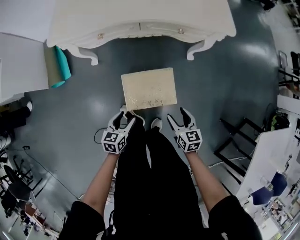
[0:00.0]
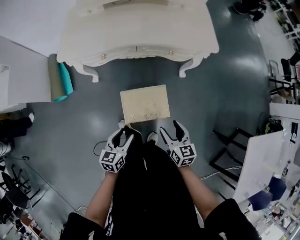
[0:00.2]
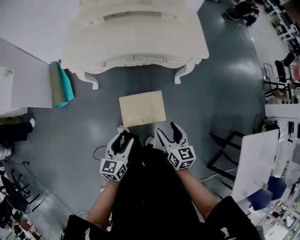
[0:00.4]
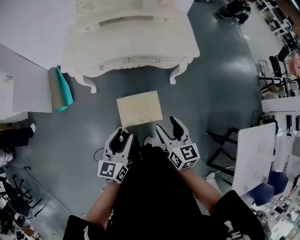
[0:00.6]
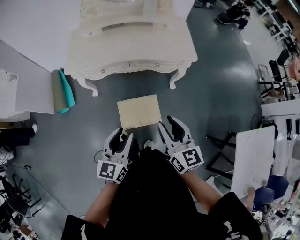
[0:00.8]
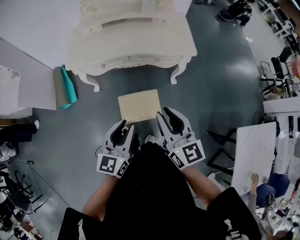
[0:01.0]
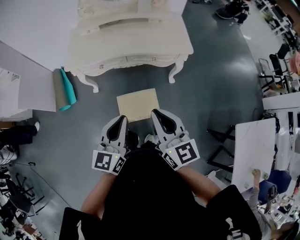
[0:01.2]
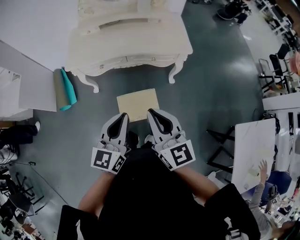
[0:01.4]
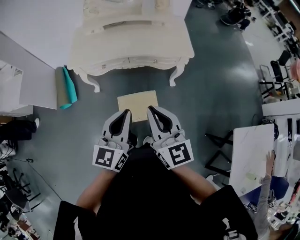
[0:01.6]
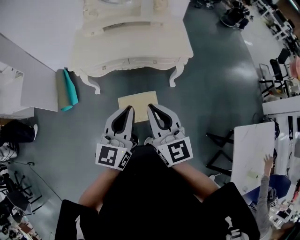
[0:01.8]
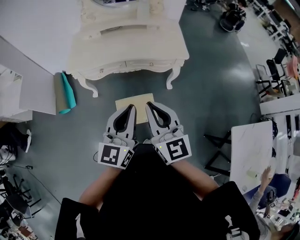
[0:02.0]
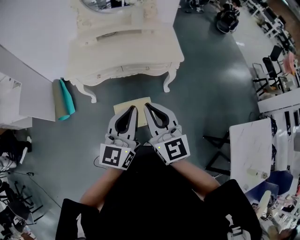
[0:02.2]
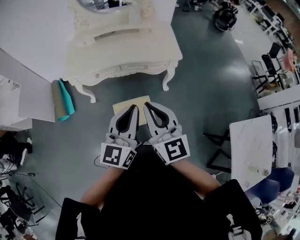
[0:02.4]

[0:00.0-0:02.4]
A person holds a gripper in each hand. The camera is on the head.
0:00.0 to 0:01.2: The two grippers go about 40 cm upward. The left gripper points its fingers some 30 degrees further upward, and closes, while the right gripper tips its fingers upward by about 30 degrees, and closes.
0:01.2 to 0:02.4: The left gripper is displaced to the right and upward by roughly 10 cm. Meanwhile the right gripper goes roughly 5 cm upward.

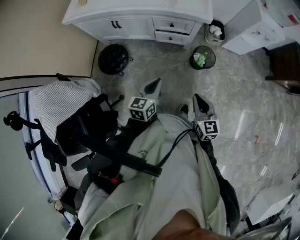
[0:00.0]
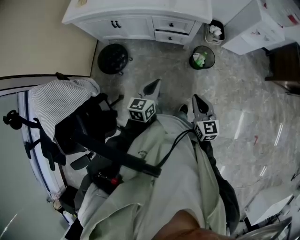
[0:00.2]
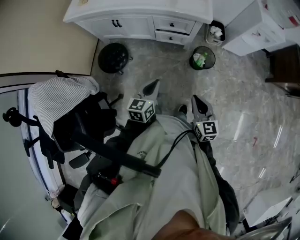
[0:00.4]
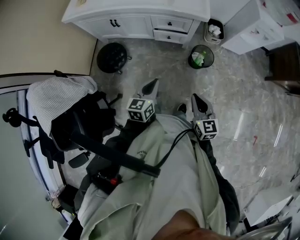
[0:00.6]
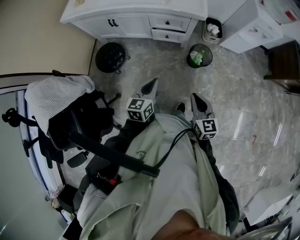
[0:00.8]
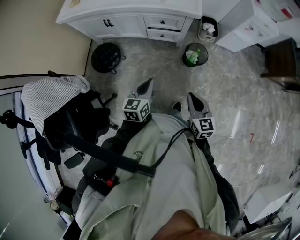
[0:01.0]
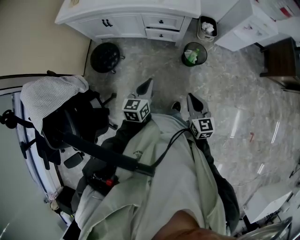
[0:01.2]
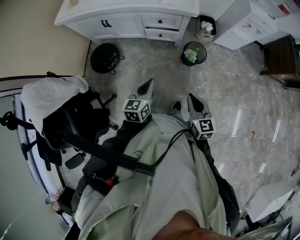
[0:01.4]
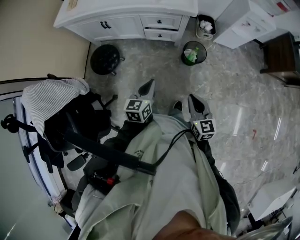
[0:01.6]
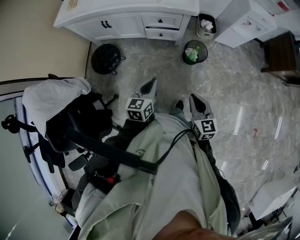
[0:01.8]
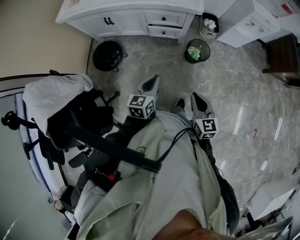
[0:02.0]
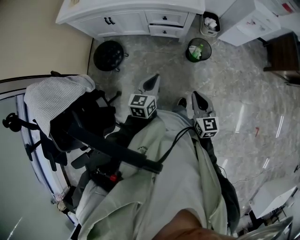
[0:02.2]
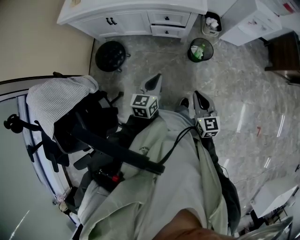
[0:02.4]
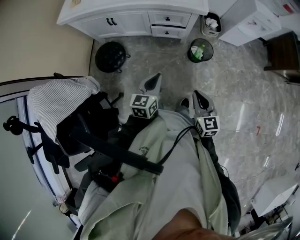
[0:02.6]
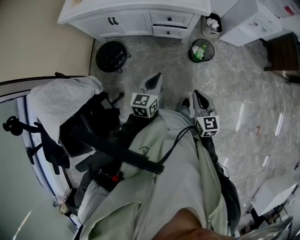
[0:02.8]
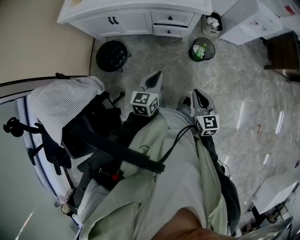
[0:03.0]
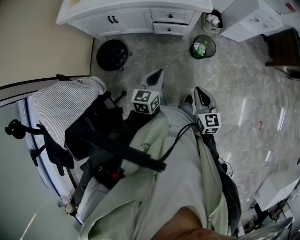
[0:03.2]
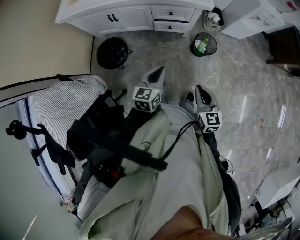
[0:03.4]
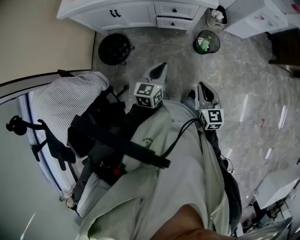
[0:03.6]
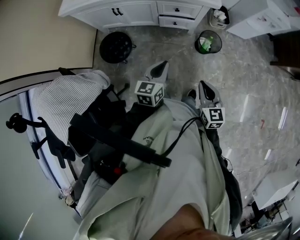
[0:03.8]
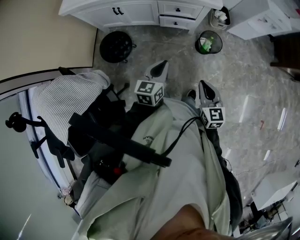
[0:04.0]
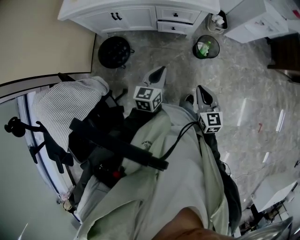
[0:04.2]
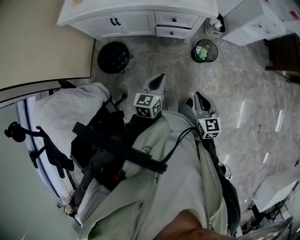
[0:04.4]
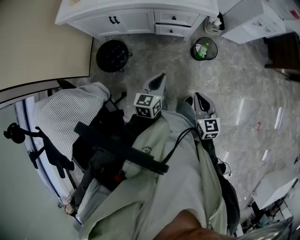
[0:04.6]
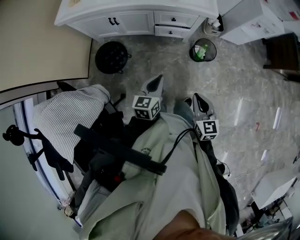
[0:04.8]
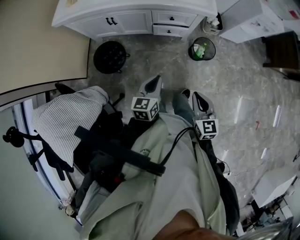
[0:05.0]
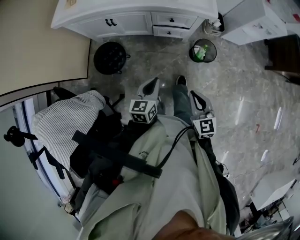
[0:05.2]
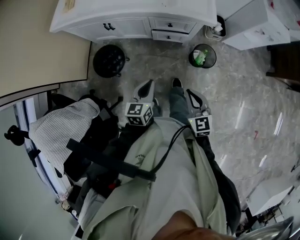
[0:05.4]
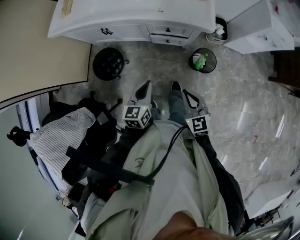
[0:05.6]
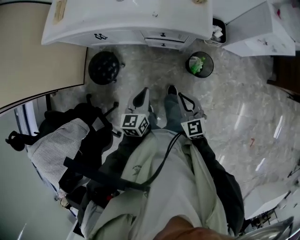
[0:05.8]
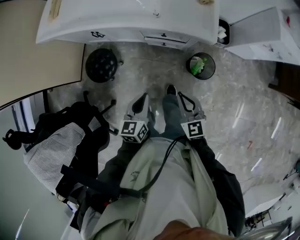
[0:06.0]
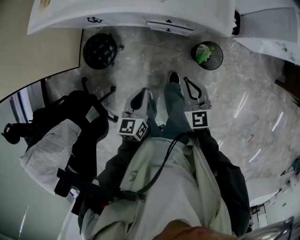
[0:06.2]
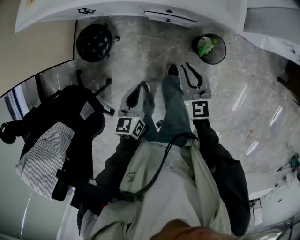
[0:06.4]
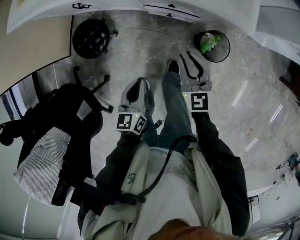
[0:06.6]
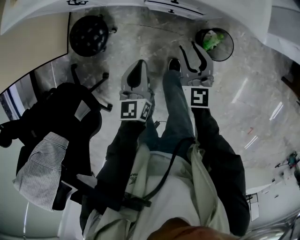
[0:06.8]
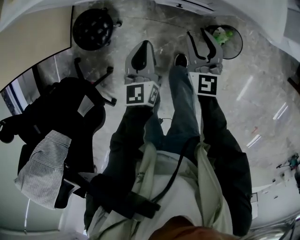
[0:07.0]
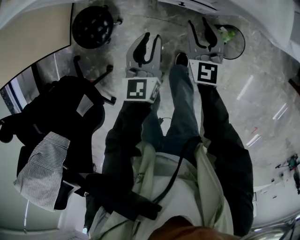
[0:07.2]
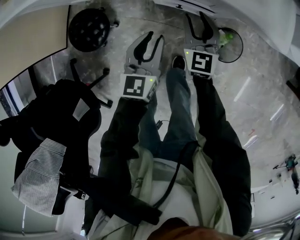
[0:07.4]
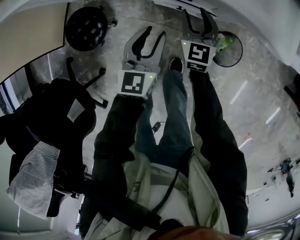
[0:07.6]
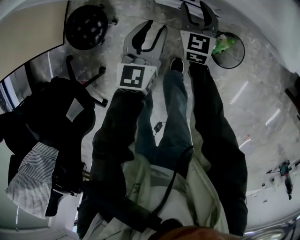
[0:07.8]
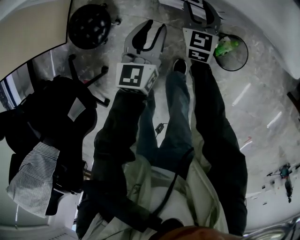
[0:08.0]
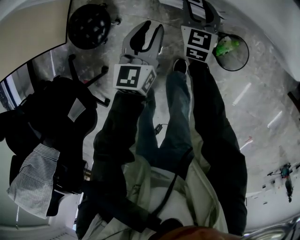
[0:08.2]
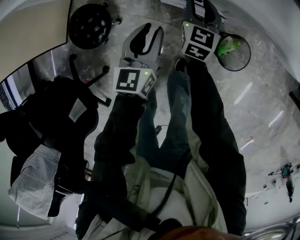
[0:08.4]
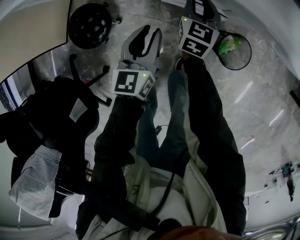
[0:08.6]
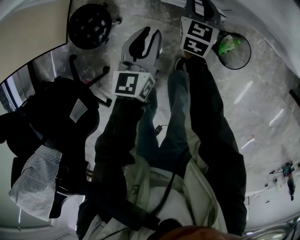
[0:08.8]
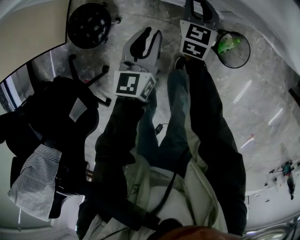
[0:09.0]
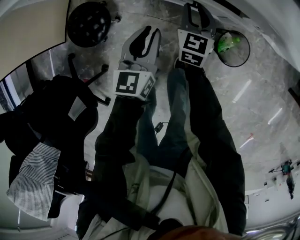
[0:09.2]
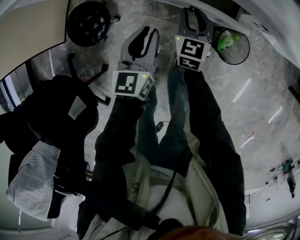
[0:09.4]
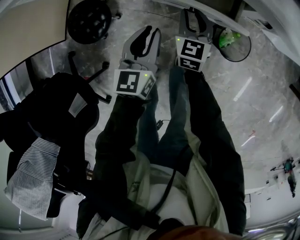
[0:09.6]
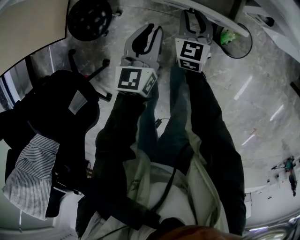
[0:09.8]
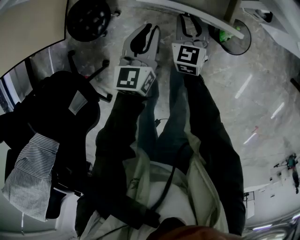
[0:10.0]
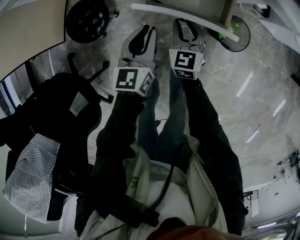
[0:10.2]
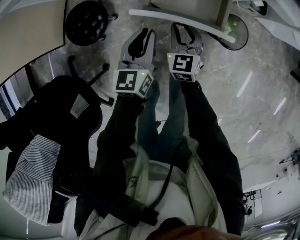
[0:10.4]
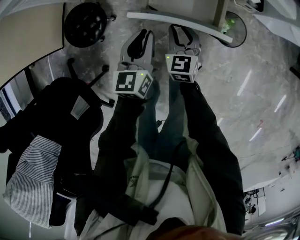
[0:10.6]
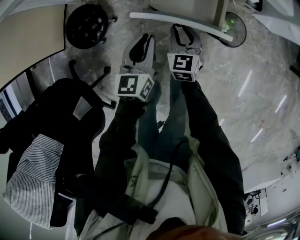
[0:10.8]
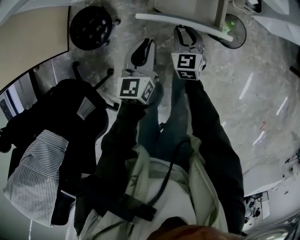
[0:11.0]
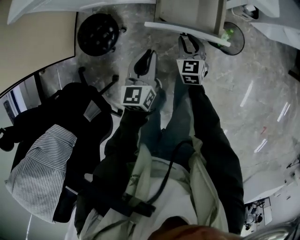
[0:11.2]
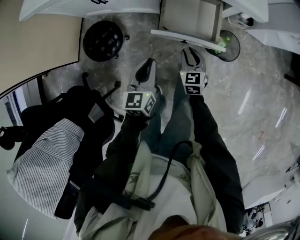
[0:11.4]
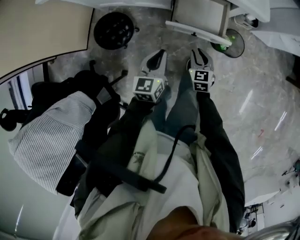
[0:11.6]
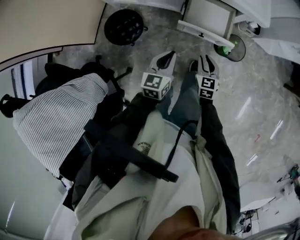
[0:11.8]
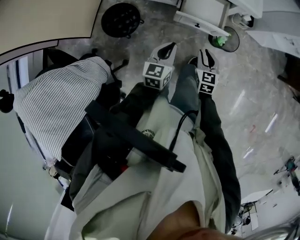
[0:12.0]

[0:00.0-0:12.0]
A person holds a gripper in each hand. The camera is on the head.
0:00.0 to 0:01.6: The right gripper moves about 5 cm.
0:01.6 to 0:03.0: Both grippers travel together to the left, about 5 cm.
0:03.0 to 0:04.4: The grippers move only a little.
0:04.4 to 0:06.0: The left gripper goes some 10 cm forward. Meanwhile the right gripper travels forward by approximately 20 cm.
0:06.0 to 0:07.6: The grippers both shift forward and downward by some 30 cm. The left gripper opens up. The right gripper opens.
0:07.6 to 0:09.0: The grippers move only a little.
0:09.0 to 0:10.4: The left gripper shifts about 10 cm backward; the right gripper shifts about 20 cm backward.
0:10.4 to 0:12.0: The grippers both shift upward and backward by about 20 cm.

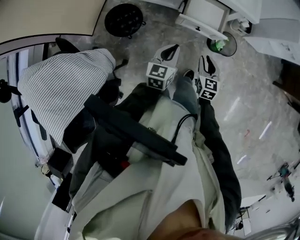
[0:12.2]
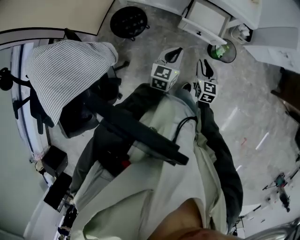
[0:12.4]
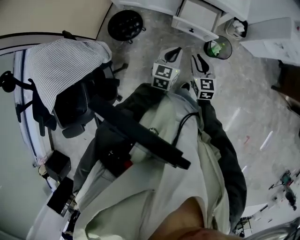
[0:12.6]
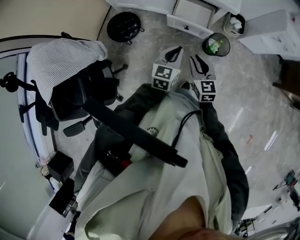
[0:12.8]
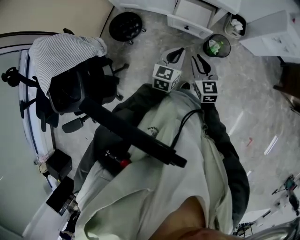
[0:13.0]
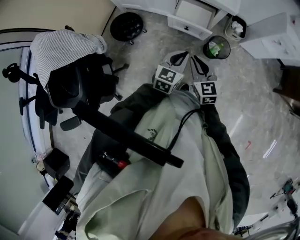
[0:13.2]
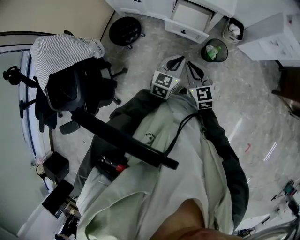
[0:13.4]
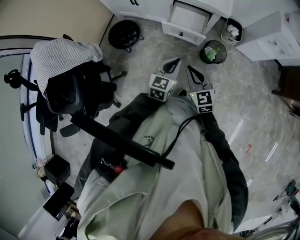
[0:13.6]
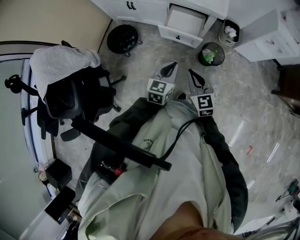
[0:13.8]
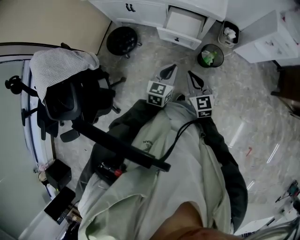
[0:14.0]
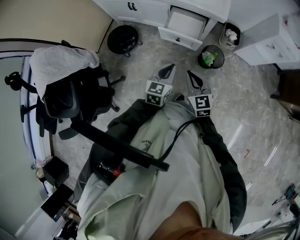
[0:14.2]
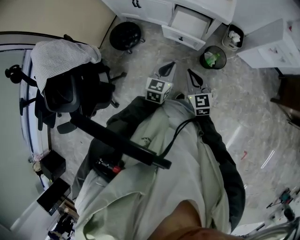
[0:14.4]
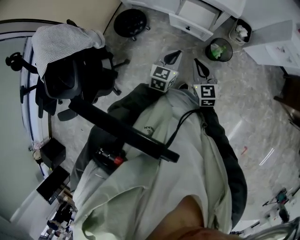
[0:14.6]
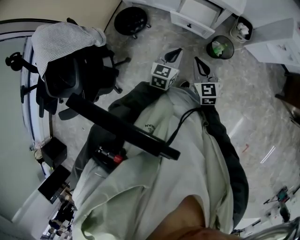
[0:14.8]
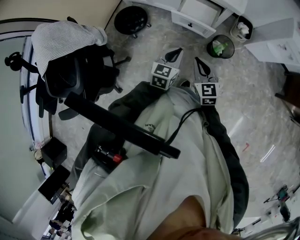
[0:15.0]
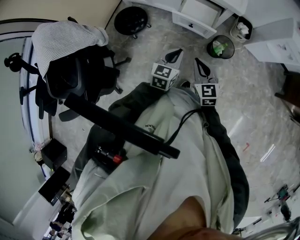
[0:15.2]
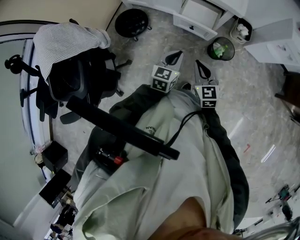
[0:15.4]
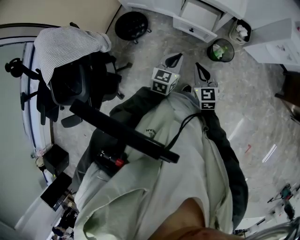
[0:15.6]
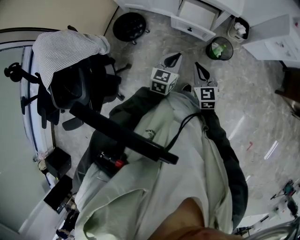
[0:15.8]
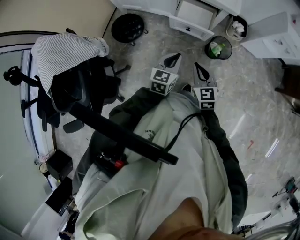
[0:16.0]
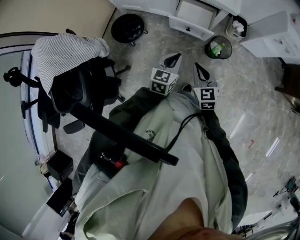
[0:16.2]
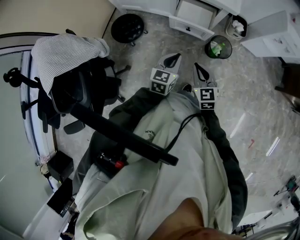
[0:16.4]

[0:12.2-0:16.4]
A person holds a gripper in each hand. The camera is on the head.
0:12.2 to 0:13.6: The right gripper is displaced upward and backward by about 15 cm, rotates roughly 30 degrees, and closes, while the left gripper travels to the right, backward and upward by approximately 15 cm.
0:13.6 to 0:16.4: The grippers make only small movements.

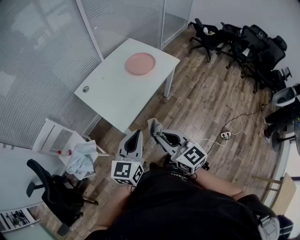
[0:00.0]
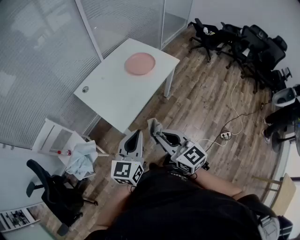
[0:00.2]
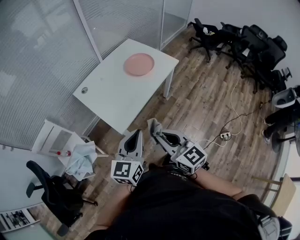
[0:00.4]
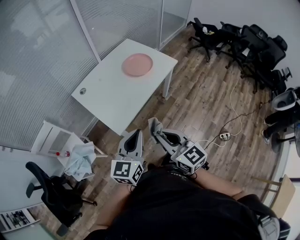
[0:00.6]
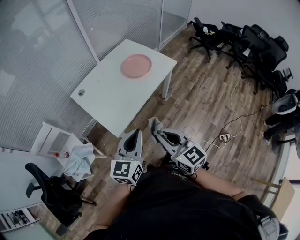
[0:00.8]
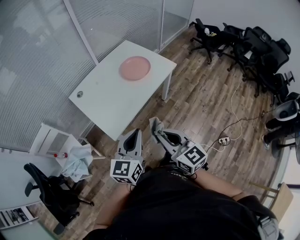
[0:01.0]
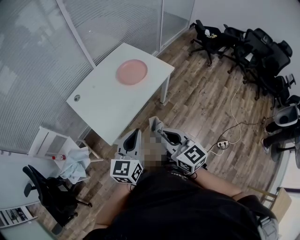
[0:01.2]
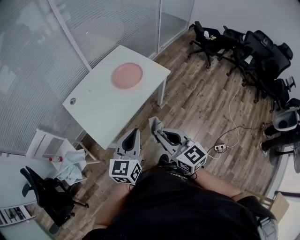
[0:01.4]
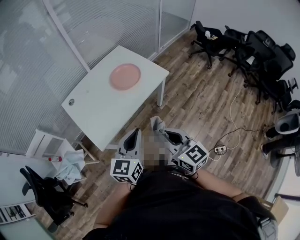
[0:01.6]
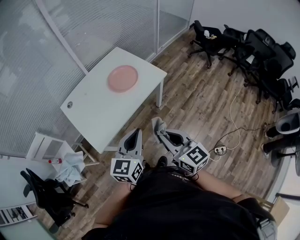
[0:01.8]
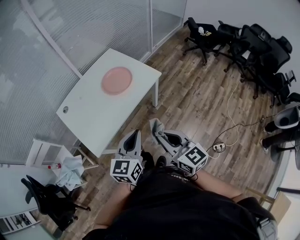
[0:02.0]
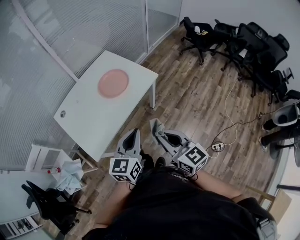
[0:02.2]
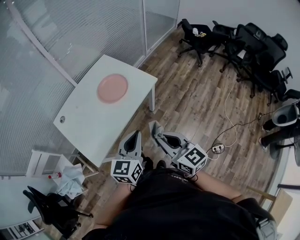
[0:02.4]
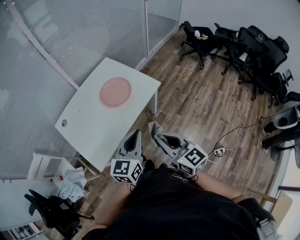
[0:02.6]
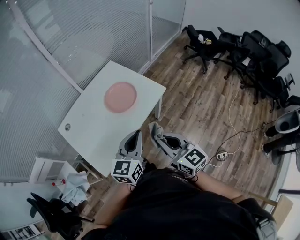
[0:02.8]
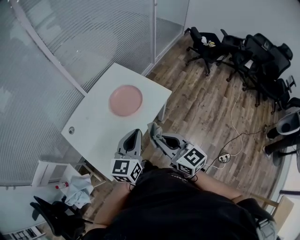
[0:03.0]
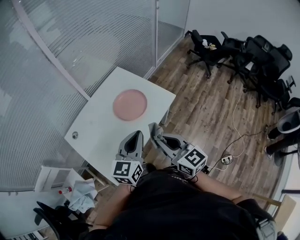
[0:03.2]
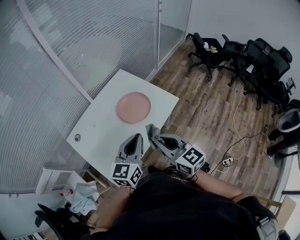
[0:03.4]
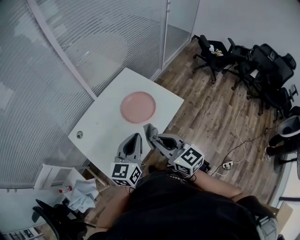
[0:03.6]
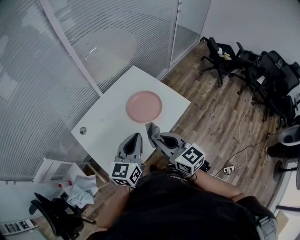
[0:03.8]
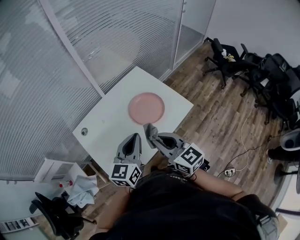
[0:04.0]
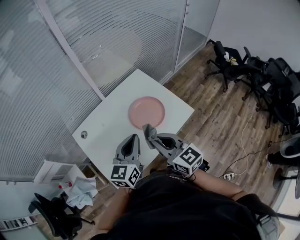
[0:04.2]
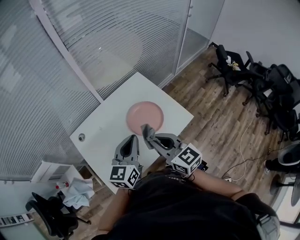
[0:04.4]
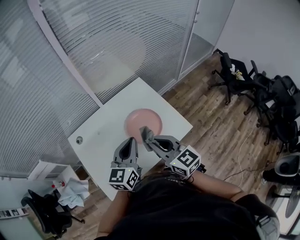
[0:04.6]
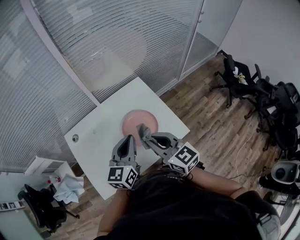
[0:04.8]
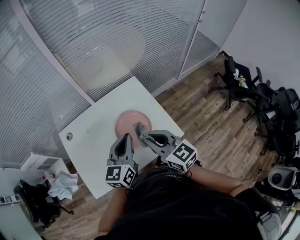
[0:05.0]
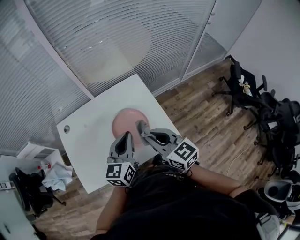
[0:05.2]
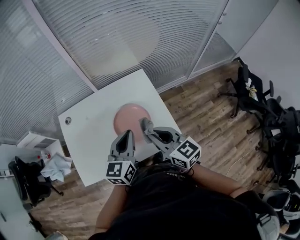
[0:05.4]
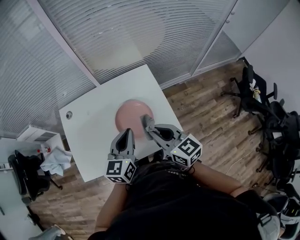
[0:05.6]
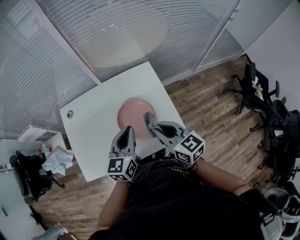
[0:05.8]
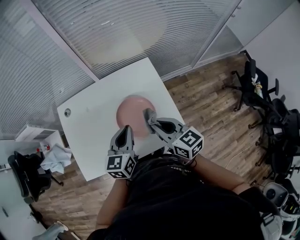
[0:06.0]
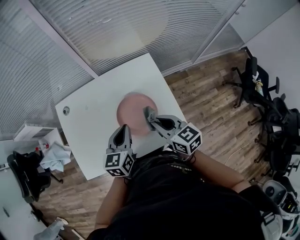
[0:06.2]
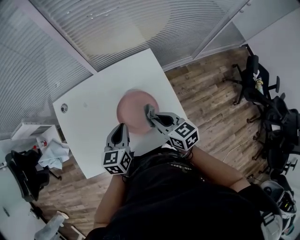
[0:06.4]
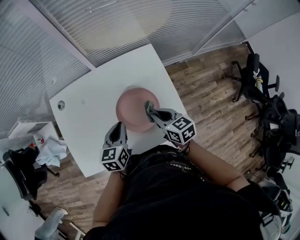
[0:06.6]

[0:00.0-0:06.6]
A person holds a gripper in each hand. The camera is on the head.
0:00.0 to 0:01.6: Both grippers travel together to the right and forward, about 20 cm.
0:01.6 to 0:03.2: The two grippers go about 20 cm forward.
0:03.2 to 0:05.0: The right gripper moves approximately 25 cm, and swivels about 30 degrees. Meanwhile the left gripper ends up roughly 20 cm from where it was, and turns by some 30 degrees.
0:05.0 to 0:06.6: The left gripper shifts approximately 15 cm downward, and swivels approximately 30 degrees; the right gripper shifts roughly 20 cm downward and forward, and changes its angle by approximately 30 degrees.
